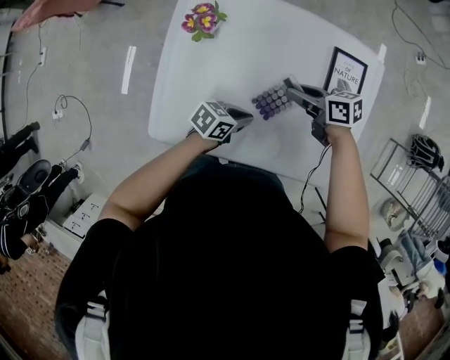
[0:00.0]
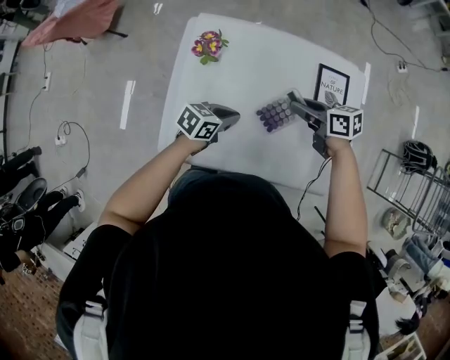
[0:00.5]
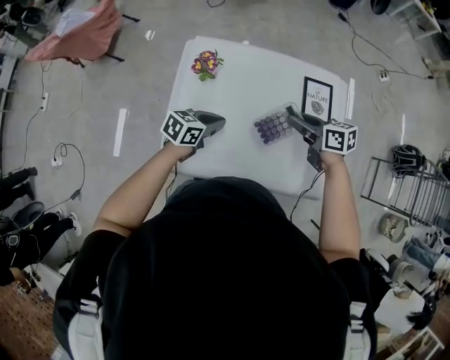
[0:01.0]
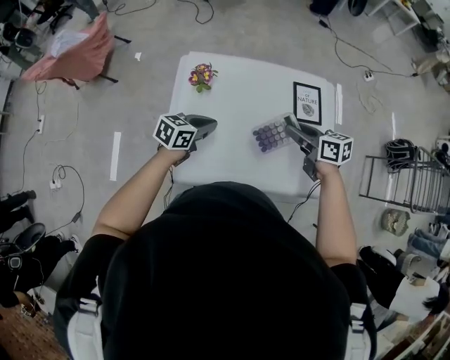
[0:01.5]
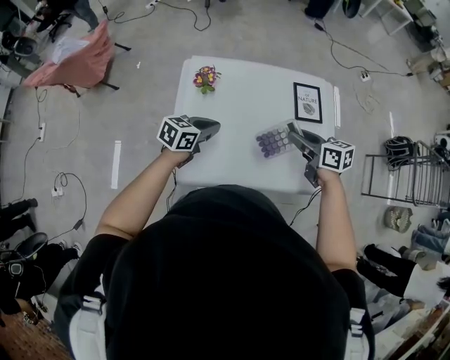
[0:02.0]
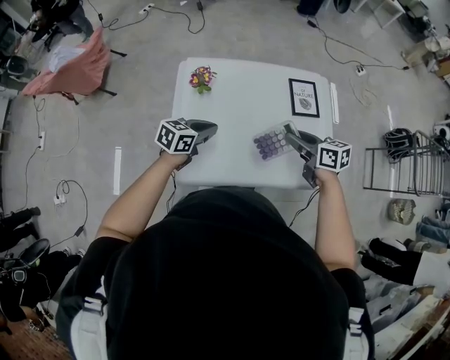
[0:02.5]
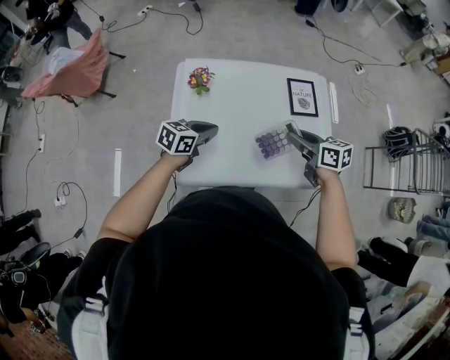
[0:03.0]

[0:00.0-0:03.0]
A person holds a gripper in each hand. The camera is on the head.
0:00.0 to 0:01.5: The grippers both shift upward by roughly 15 cm. The left gripper swivels approximately 20 degrees. Meanwhile the right gripper turns by approximately 30 degrees.
0:01.5 to 0:03.0: The right gripper travels backward by roughly 5 cm.

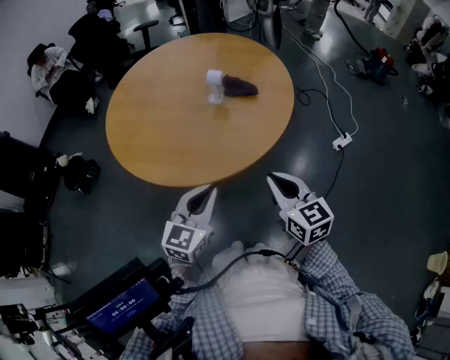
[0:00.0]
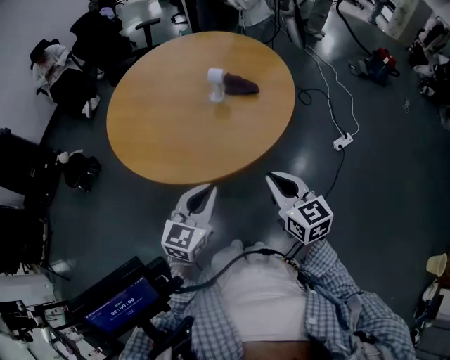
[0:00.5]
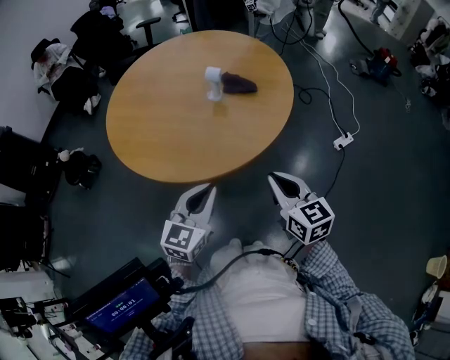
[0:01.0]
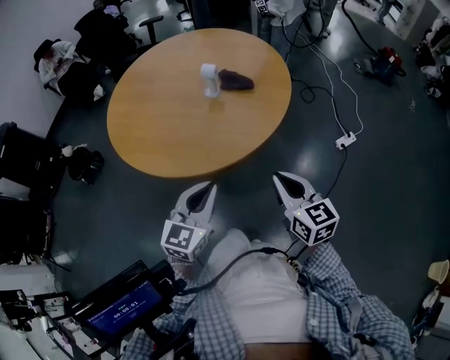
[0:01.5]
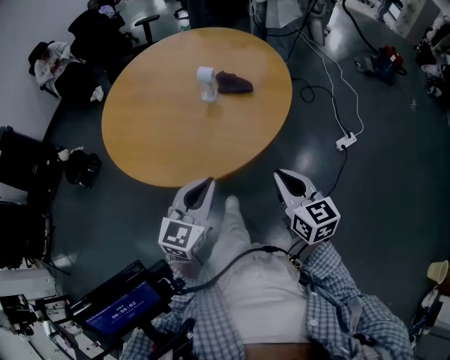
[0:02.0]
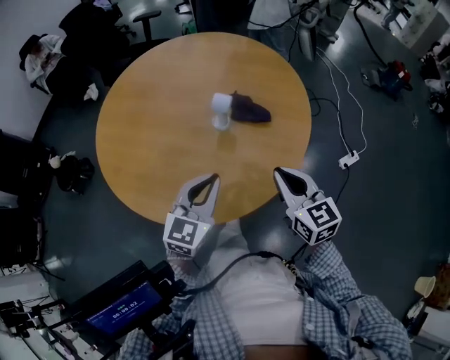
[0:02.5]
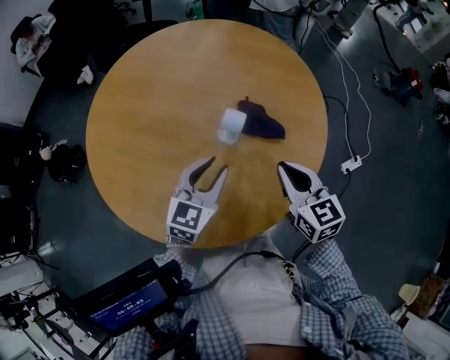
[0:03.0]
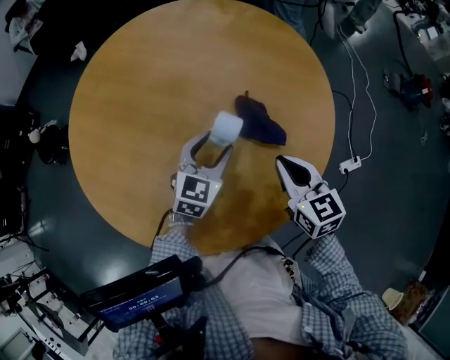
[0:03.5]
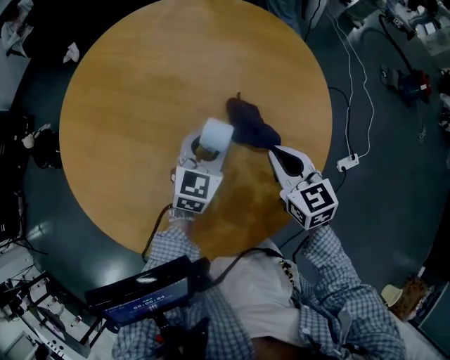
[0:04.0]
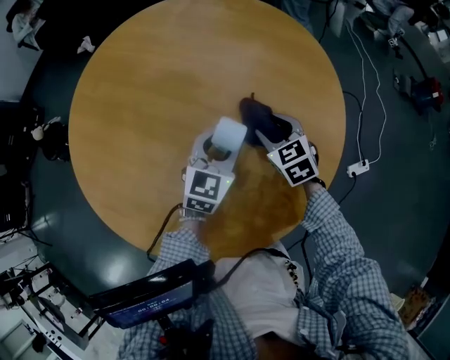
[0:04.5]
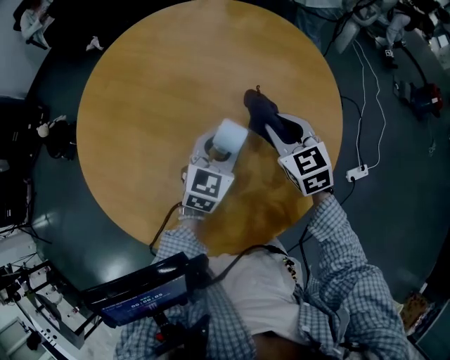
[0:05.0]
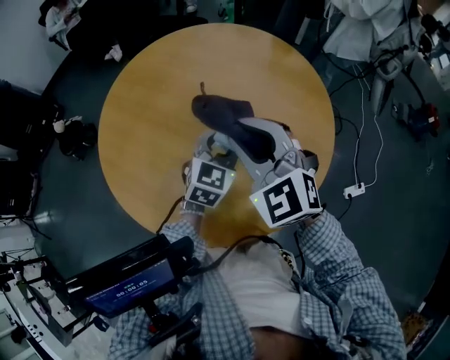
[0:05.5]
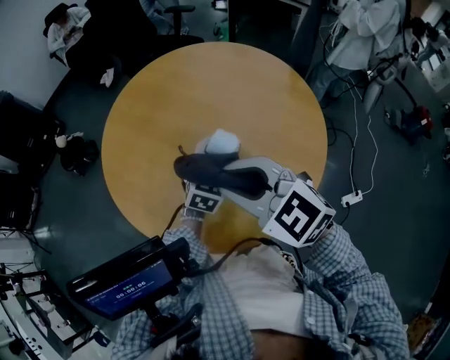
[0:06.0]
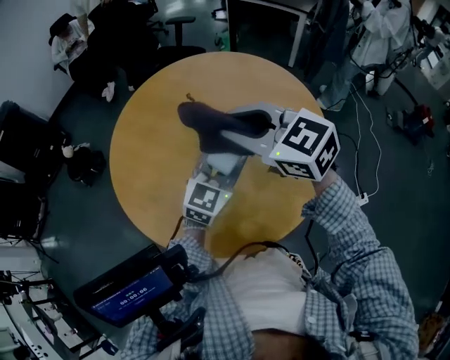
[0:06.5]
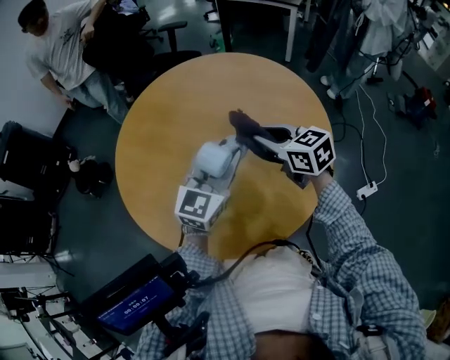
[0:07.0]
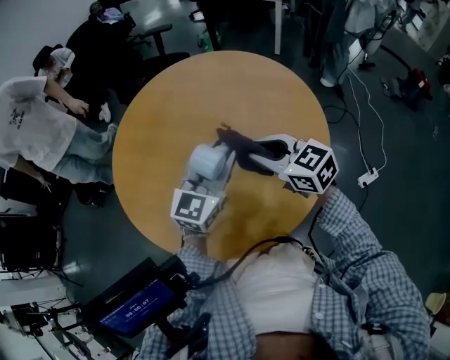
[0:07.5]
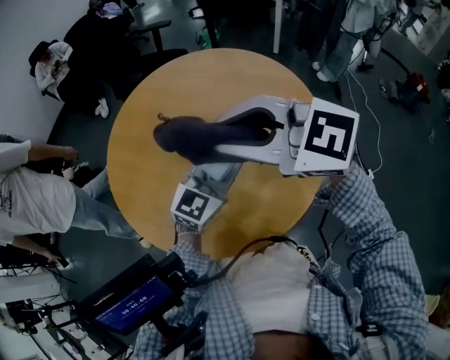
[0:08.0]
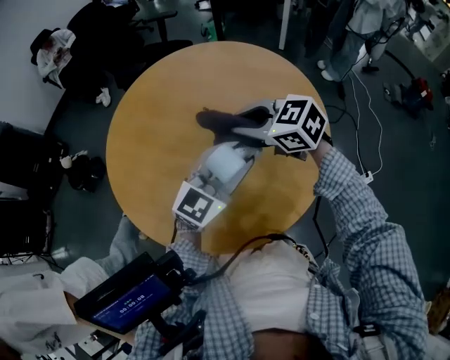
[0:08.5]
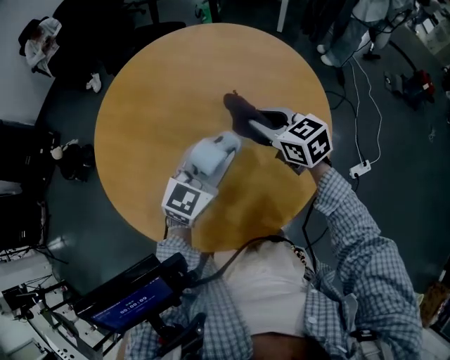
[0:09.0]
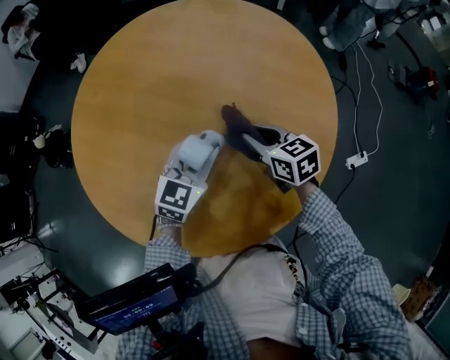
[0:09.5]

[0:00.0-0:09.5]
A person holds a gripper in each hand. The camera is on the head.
0:00.0 to 0:02.0: The grippers stay close to where they were, moving slightly.
0:02.0 to 0:04.0: Both grippers move forward, roughly 35 cm. The left gripper opens its fingers.
0:04.0 to 0:05.5: The right gripper moves upward and to the left, about 25 cm, rotates around the line of its fingers by about 40 degrees, counterclockwise from behind, and opens its fingers. The left gripper shifts roughly 10 cm upward.
0:05.5 to 0:07.5: The right gripper is displaced downward and to the right by some 10 cm, and changes its angle by some 40 degrees. Meanwhile the left gripper moves upward, roughly 10 cm, and rotates approximately 20 degrees.
0:07.5 to 0:09.5: The grippers both shift downward by roughly 15 cm. The right gripper changes its angle by some 20 degrees.

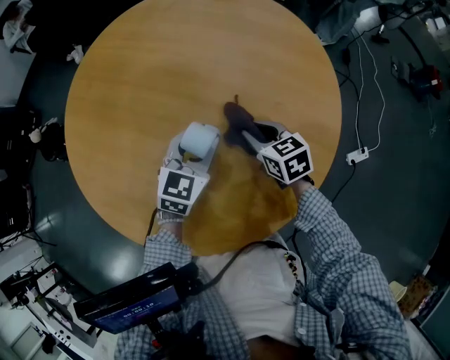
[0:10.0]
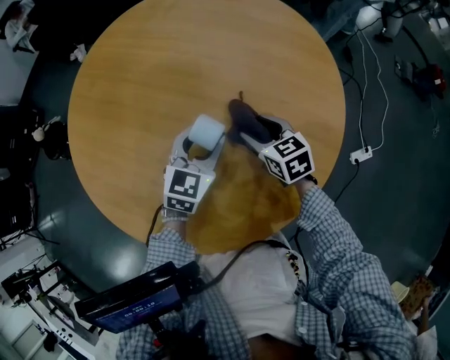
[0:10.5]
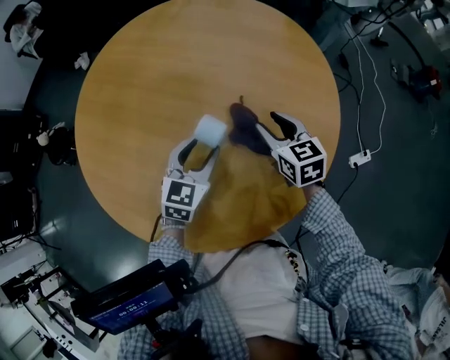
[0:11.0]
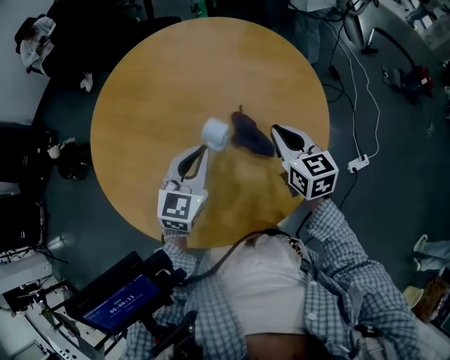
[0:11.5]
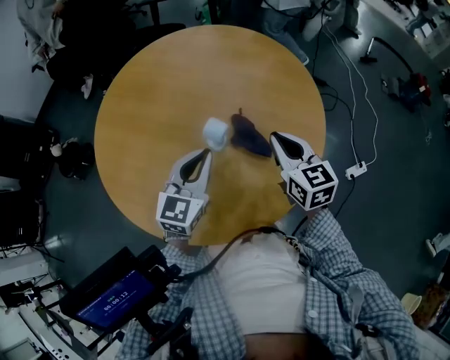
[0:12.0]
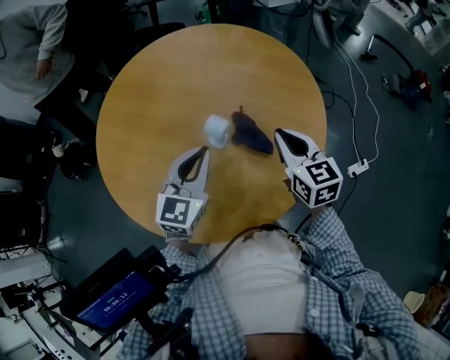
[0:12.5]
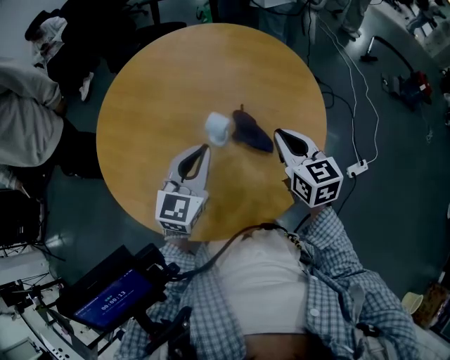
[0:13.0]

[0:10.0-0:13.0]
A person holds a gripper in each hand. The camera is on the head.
0:10.0 to 0:11.5: The left gripper heads upward and backward, covering approximately 10 cm, and closes. The right gripper shifts about 15 cm upward, rotates about 20 degrees, and closes its fingers.
0:11.5 to 0:13.0: There are only small adjustments of the grippers.

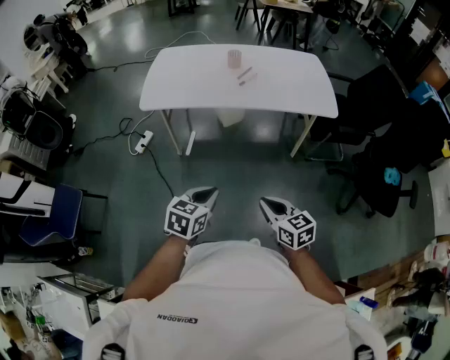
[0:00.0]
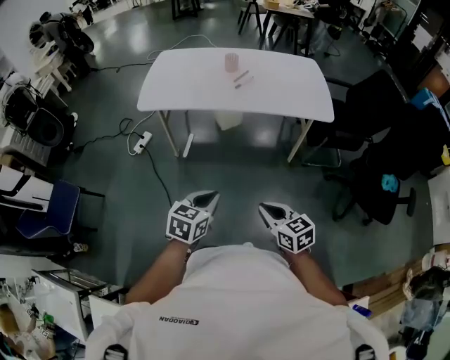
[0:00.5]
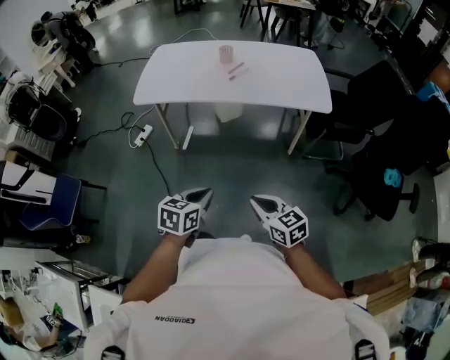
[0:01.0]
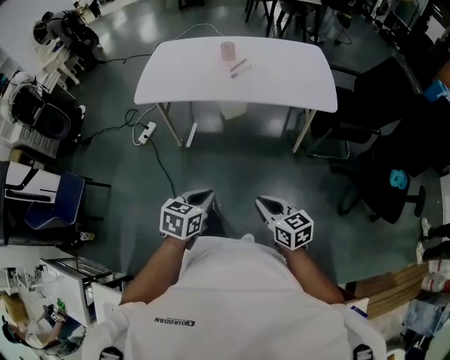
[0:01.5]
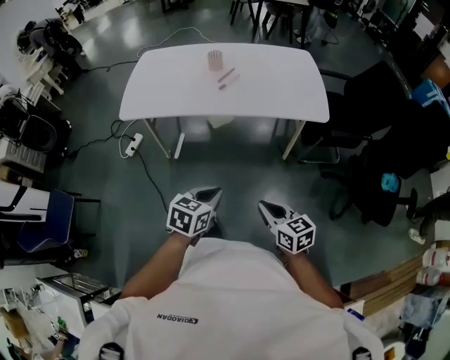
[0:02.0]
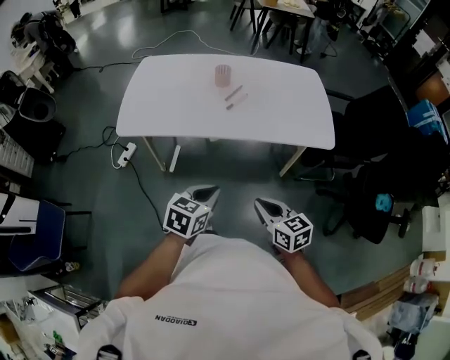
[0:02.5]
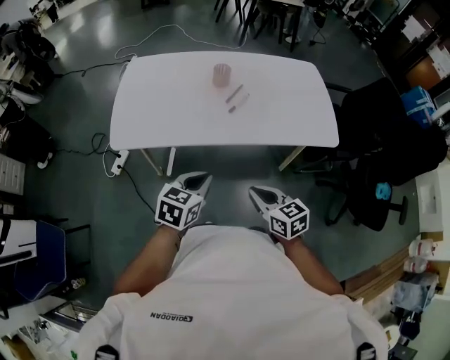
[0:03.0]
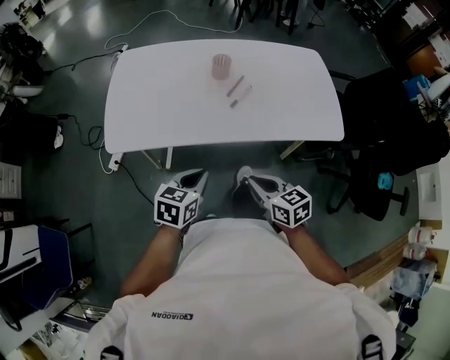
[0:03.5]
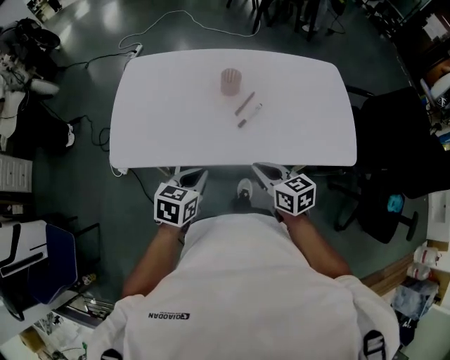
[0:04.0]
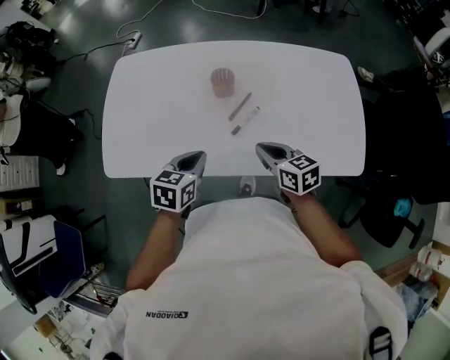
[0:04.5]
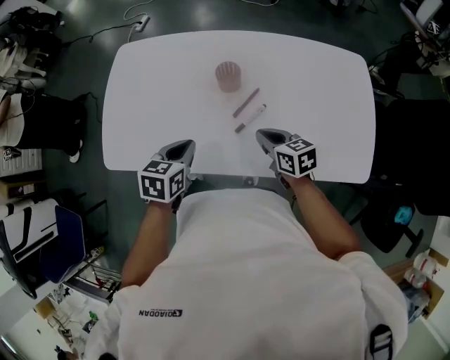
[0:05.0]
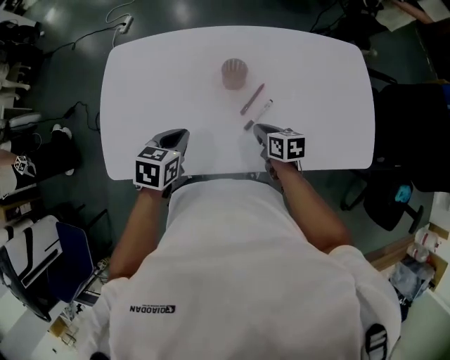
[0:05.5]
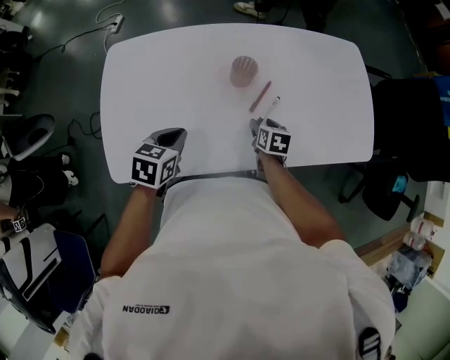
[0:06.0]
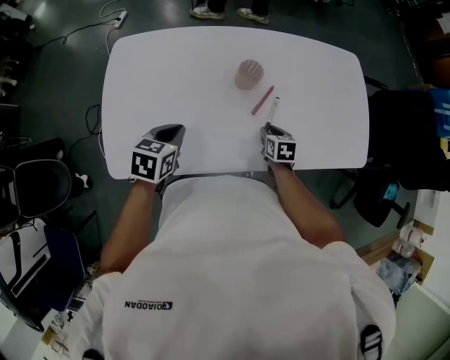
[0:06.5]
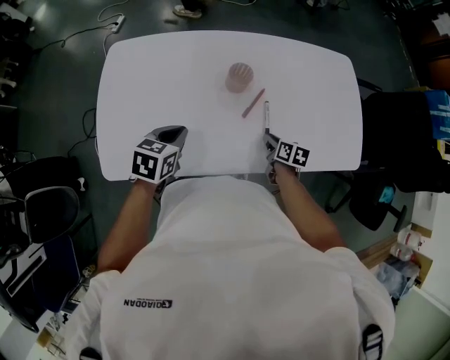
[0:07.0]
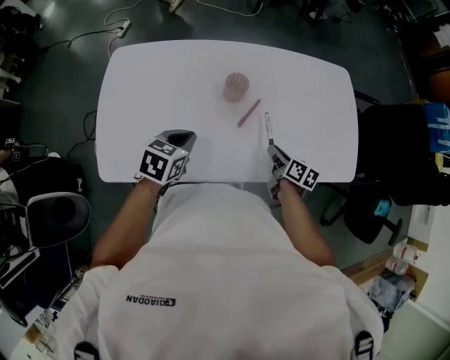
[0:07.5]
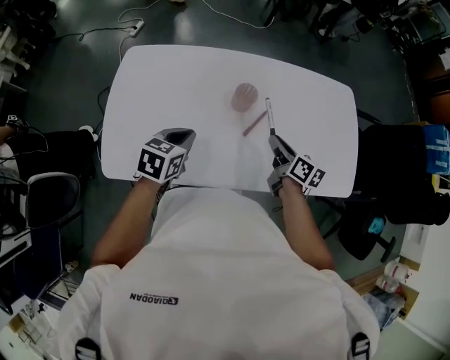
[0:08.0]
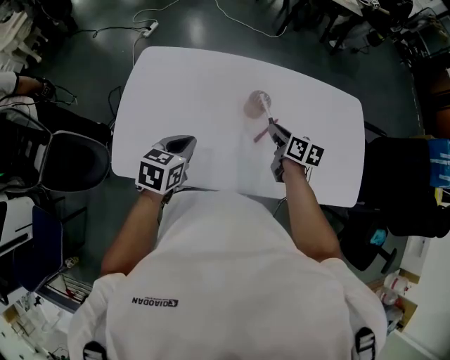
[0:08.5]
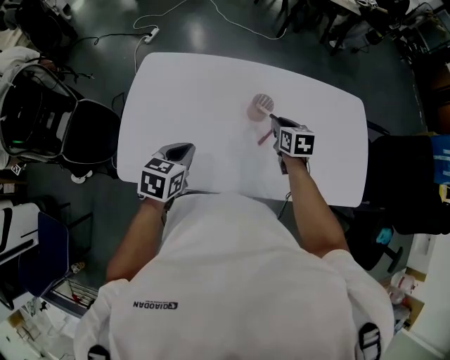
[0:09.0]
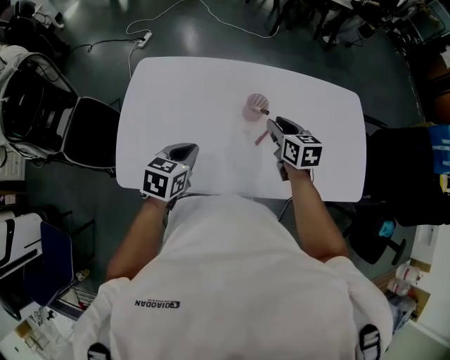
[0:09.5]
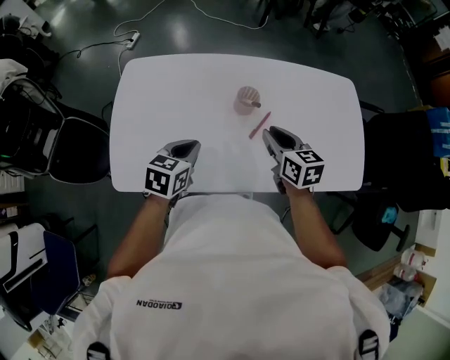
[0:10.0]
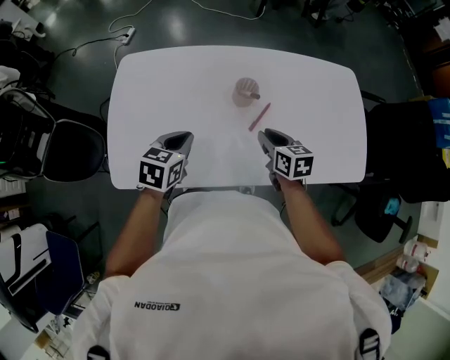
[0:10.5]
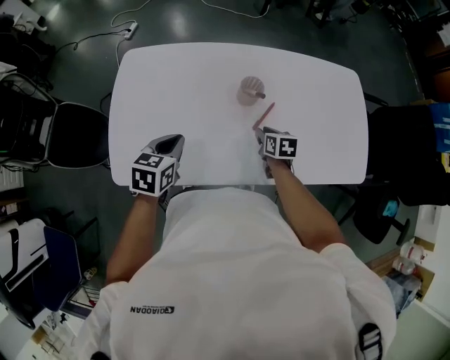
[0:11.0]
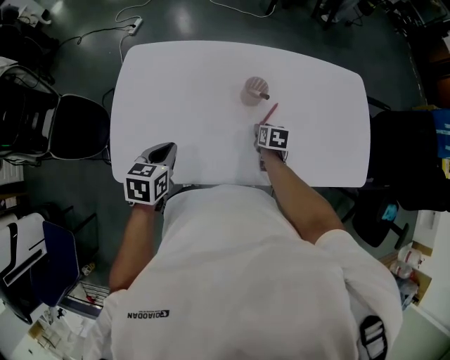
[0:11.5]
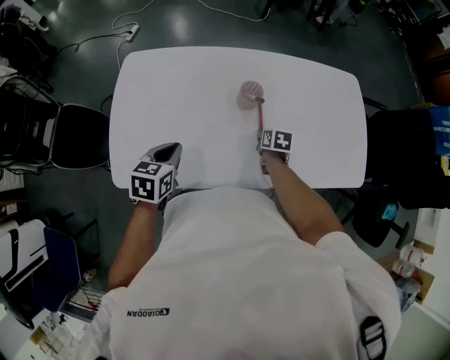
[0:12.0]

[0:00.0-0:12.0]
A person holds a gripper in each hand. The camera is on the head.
0:00.0 to 0:02.0: The two grippers go approximately 15 cm to the right and forward.
0:02.0 to 0:04.0: The two grippers travel together, forward and to the left, roughly 40 cm.
0:04.0 to 0:06.0: The right gripper shifts by approximately 30 cm, turns by approximately 40 degrees, and opens its fingers. The left gripper changes place by some 25 cm.
0:06.0 to 0:08.0: The left gripper changes place by about 5 cm, while the right gripper heads upward, covering about 15 cm, turns by roughly 30 degrees, and closes.
0:08.0 to 0:10.0: The right gripper heads to the left and upward, covering about 10 cm, and turns by about 30 degrees.
0:10.0 to 0:12.0: The left gripper moves to the left, some 5 cm. The right gripper travels downward by about 20 cm, and changes its angle by about 30 degrees.
